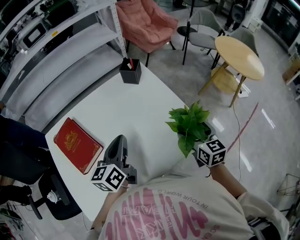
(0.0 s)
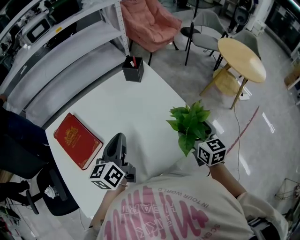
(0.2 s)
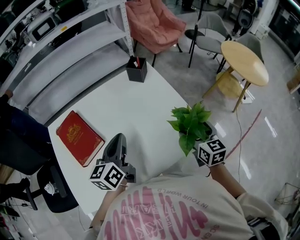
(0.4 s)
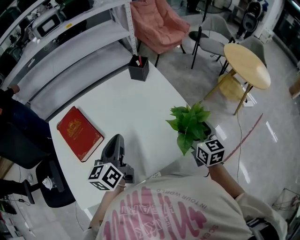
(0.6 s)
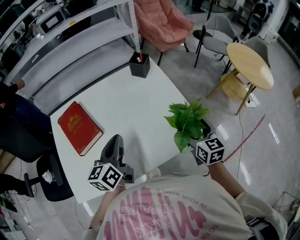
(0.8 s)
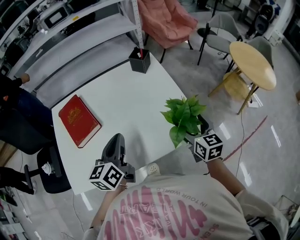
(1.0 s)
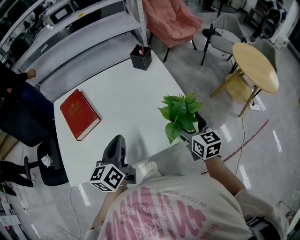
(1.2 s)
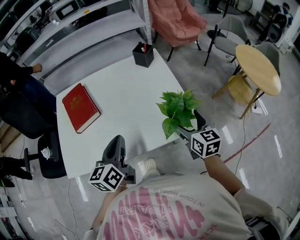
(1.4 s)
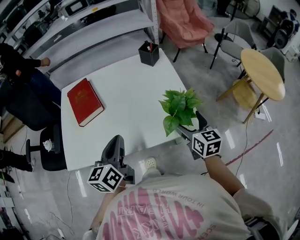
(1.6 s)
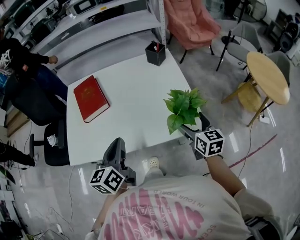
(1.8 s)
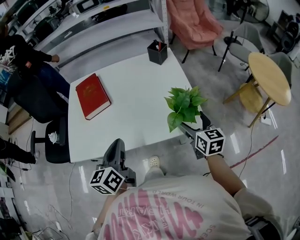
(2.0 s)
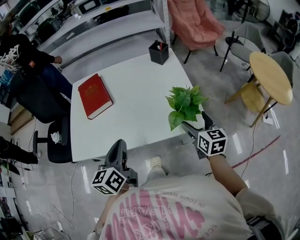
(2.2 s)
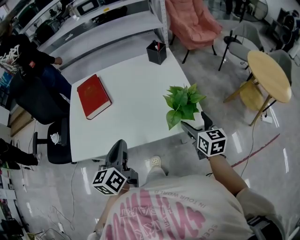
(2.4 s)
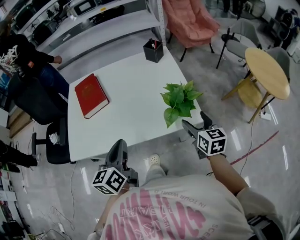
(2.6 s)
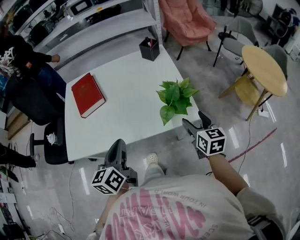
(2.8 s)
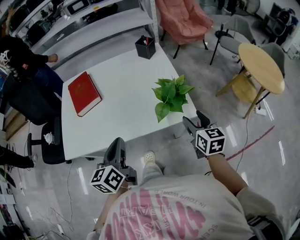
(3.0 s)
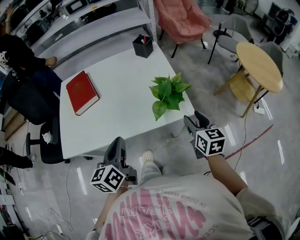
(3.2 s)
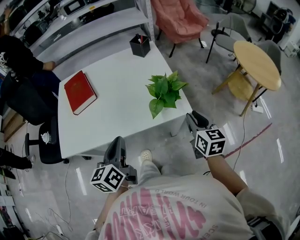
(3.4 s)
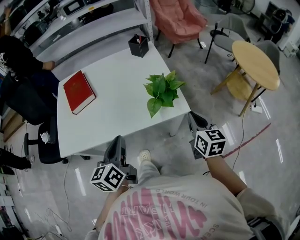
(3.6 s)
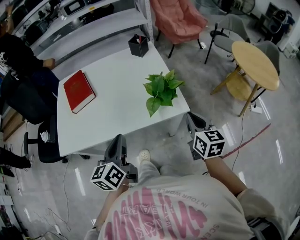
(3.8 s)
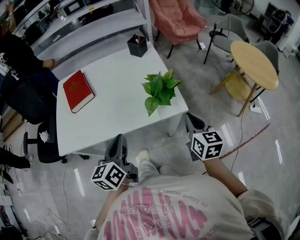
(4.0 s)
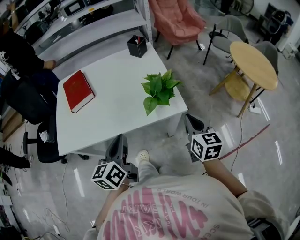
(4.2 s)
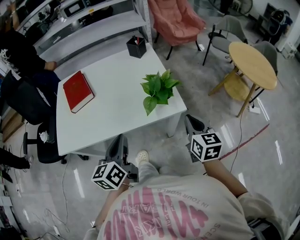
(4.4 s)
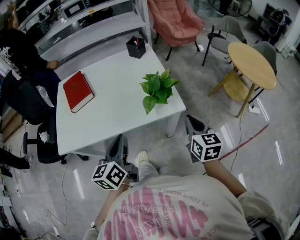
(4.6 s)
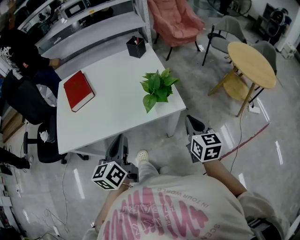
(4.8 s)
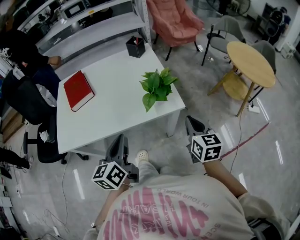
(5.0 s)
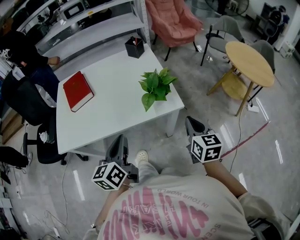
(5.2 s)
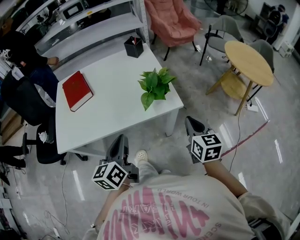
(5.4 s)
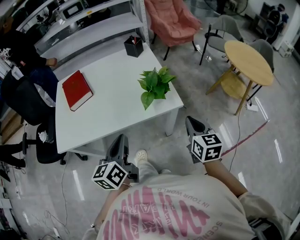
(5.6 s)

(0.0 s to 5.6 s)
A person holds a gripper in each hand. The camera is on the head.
0.0 s - 1.4 s: The left gripper goes some 15 cm backward.
1.4 s - 2.8 s: The right gripper is displaced backward by some 5 cm, while the left gripper heads backward, covering roughly 10 cm.
2.8 s - 4.2 s: The left gripper is displaced to the right by some 5 cm. The right gripper is displaced backward by some 5 cm, and closes.
4.2 s - 5.6 s: The right gripper moves about 5 cm.

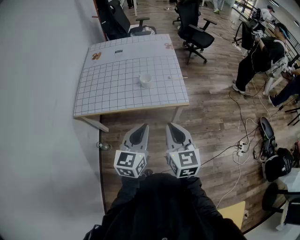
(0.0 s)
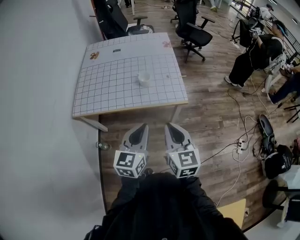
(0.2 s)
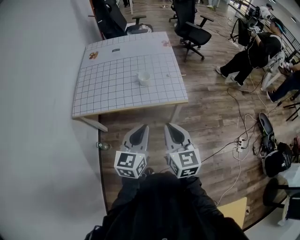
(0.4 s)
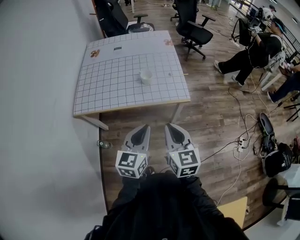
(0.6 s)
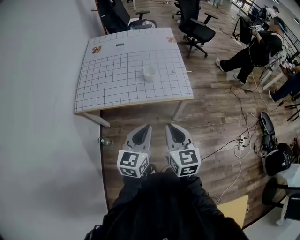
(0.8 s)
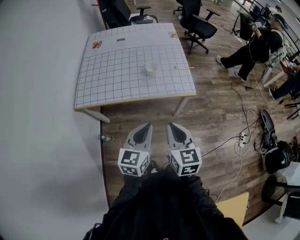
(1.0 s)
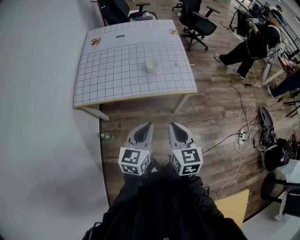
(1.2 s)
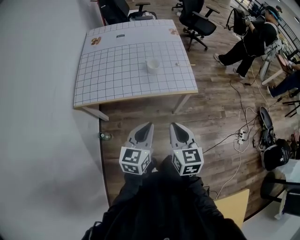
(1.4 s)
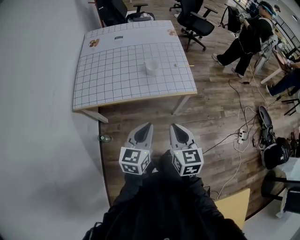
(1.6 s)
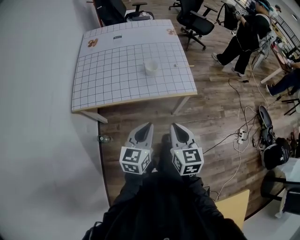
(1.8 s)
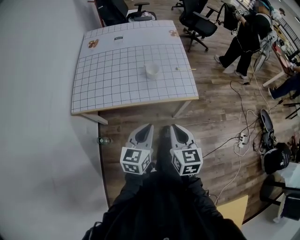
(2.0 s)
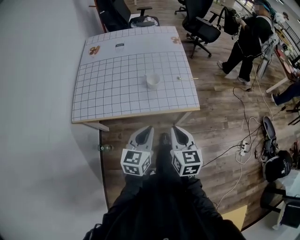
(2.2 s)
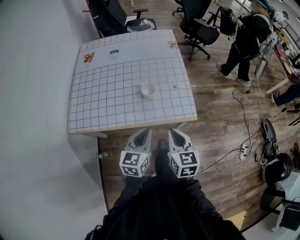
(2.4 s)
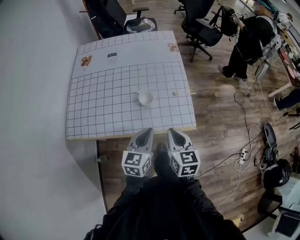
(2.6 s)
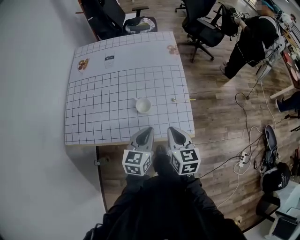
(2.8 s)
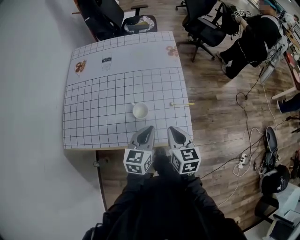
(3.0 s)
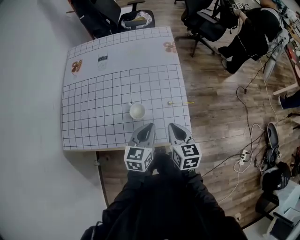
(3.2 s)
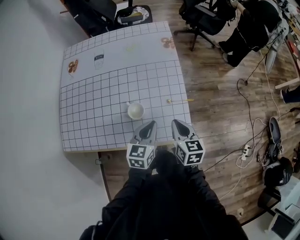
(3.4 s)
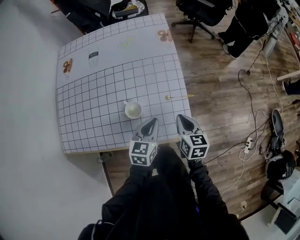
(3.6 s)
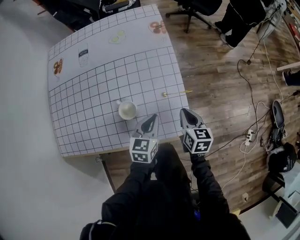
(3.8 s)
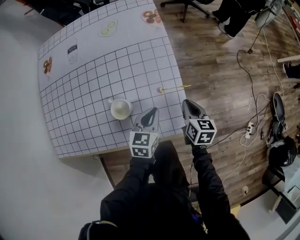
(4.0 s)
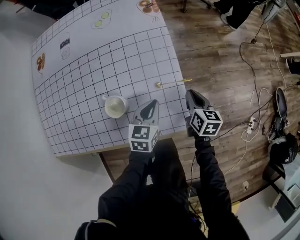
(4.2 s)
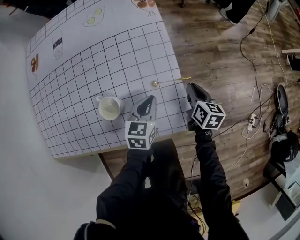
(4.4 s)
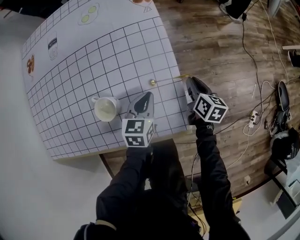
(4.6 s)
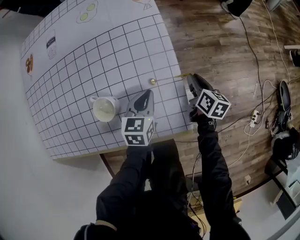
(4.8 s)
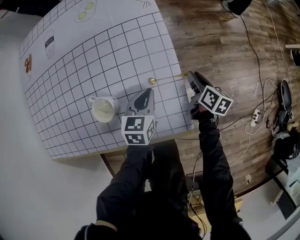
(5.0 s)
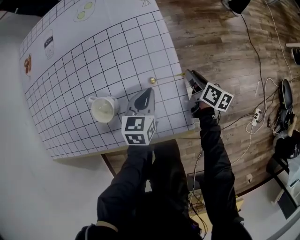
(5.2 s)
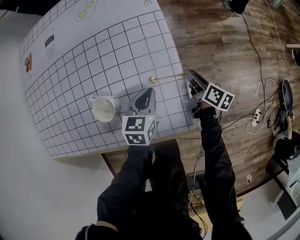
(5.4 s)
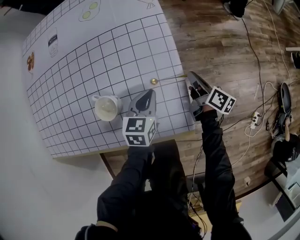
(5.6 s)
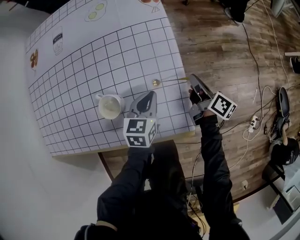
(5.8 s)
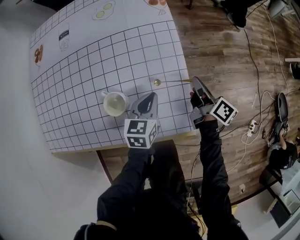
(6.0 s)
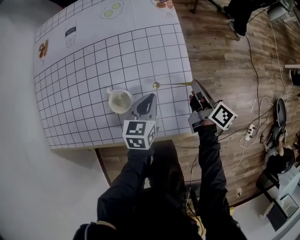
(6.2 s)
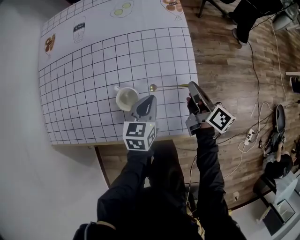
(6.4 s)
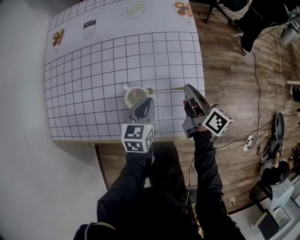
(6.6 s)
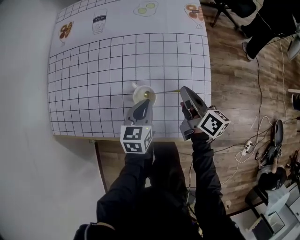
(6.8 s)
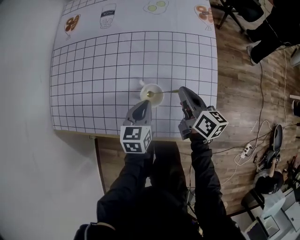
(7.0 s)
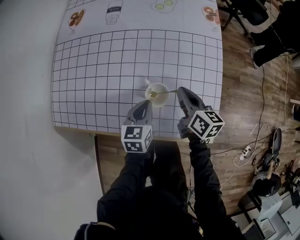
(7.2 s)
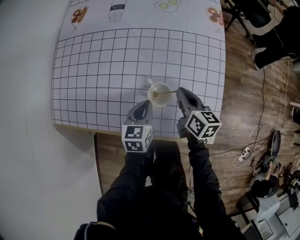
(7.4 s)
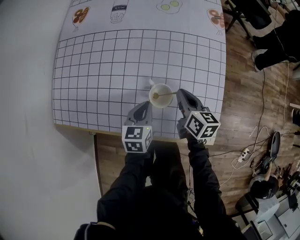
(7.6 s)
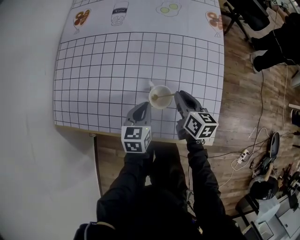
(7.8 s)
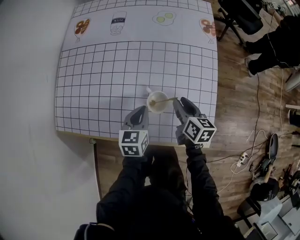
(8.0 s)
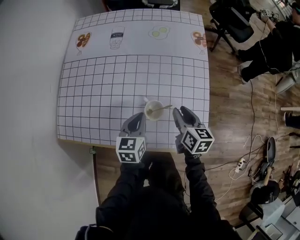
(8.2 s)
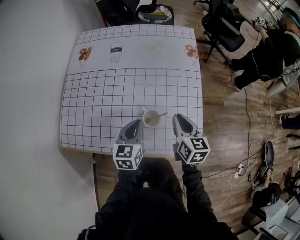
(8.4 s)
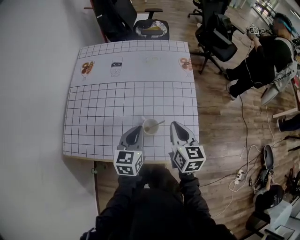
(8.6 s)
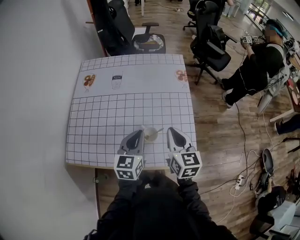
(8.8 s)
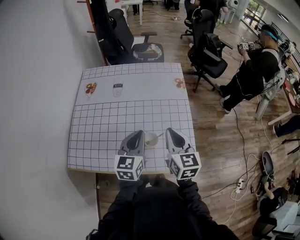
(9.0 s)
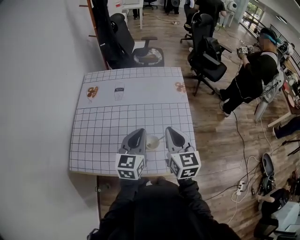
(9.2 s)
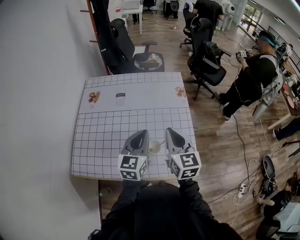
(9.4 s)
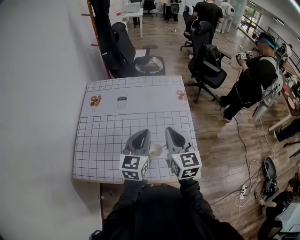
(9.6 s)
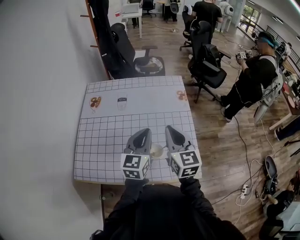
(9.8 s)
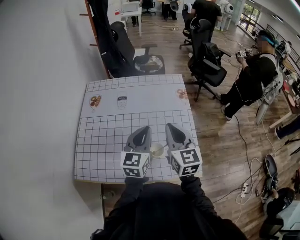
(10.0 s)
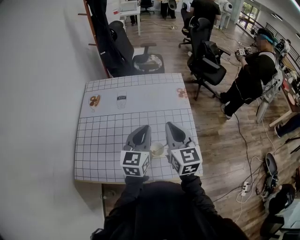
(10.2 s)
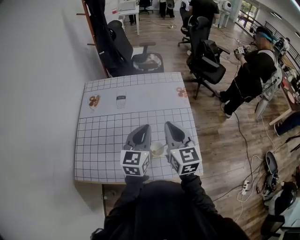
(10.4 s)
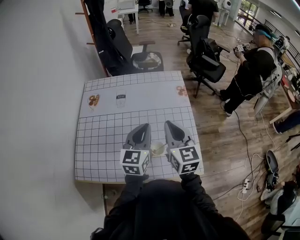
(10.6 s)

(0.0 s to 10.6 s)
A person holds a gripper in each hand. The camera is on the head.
0.0 s - 1.6 s: The right gripper is displaced downward and to the left by roughly 10 cm, while the left gripper shifts approximately 10 cm to the left and downward.
1.6 s - 3.0 s: The two grippers go about 40 cm forward.
3.0 s - 4.6 s: The left gripper moves downward and forward, some 30 cm. The right gripper travels downward, forward and to the right by about 40 cm, and swivels about 30 degrees.
4.6 s - 6.0 s: The right gripper is displaced upward by approximately 5 cm, and rotates some 30 degrees.
6.0 s - 7.6 s: Both grippers move to the left, approximately 25 cm. The right gripper changes its angle by some 40 degrees.
7.6 s - 9.0 s: Both grippers move upward, some 30 cm. The right gripper rotates some 30 degrees, and opens, then closes again; the left gripper turns by approximately 30 degrees.
9.0 s - 10.6 s: The left gripper shifts about 10 cm forward and upward; the right gripper moves upward and forward, approximately 10 cm.

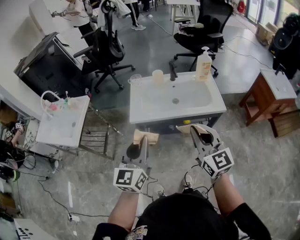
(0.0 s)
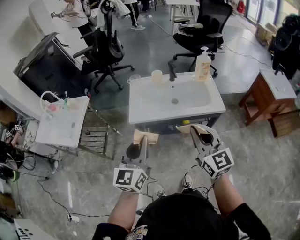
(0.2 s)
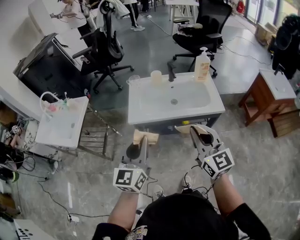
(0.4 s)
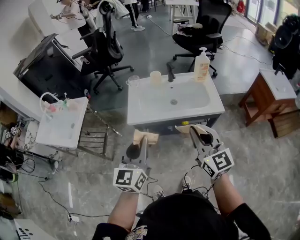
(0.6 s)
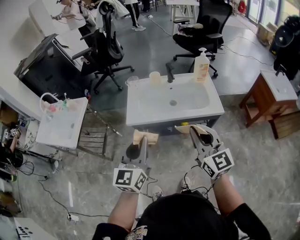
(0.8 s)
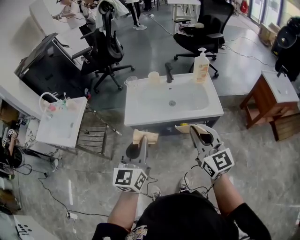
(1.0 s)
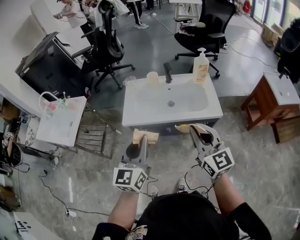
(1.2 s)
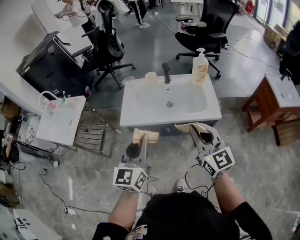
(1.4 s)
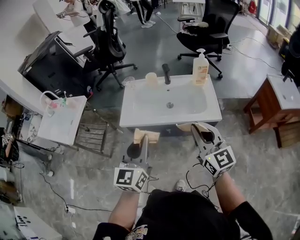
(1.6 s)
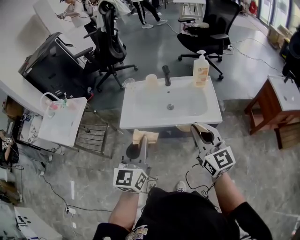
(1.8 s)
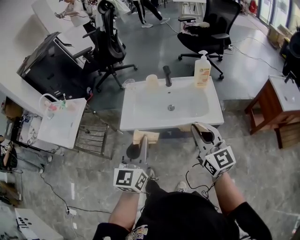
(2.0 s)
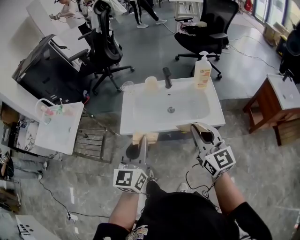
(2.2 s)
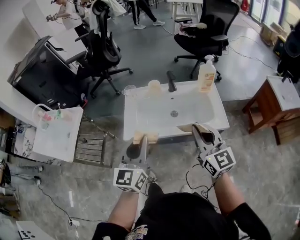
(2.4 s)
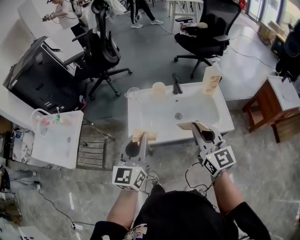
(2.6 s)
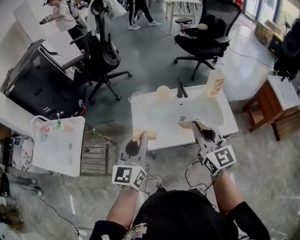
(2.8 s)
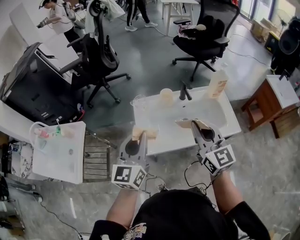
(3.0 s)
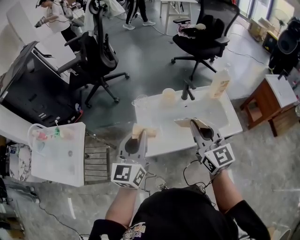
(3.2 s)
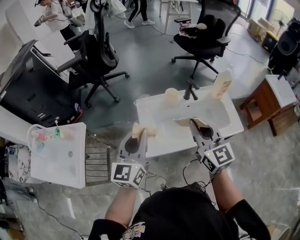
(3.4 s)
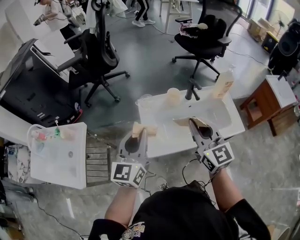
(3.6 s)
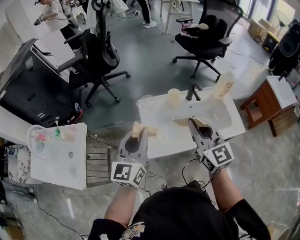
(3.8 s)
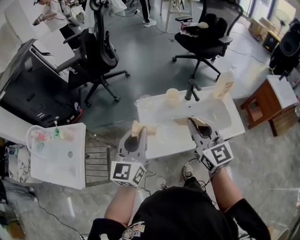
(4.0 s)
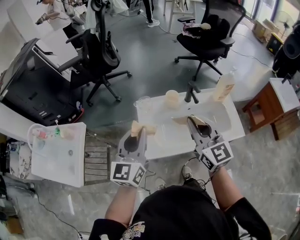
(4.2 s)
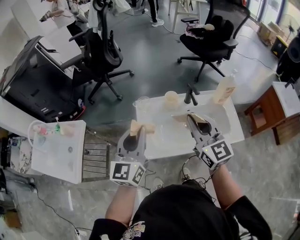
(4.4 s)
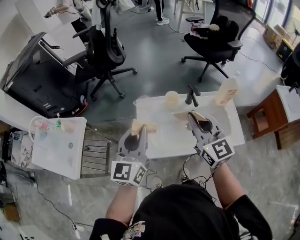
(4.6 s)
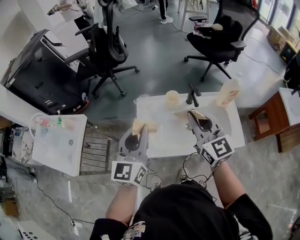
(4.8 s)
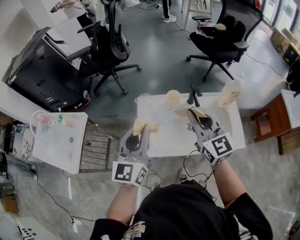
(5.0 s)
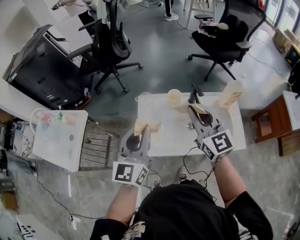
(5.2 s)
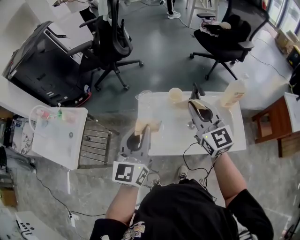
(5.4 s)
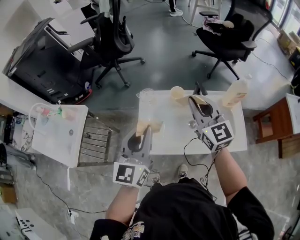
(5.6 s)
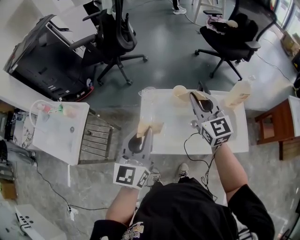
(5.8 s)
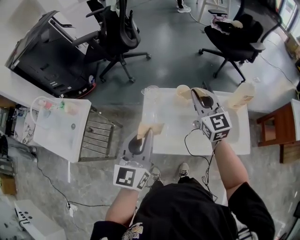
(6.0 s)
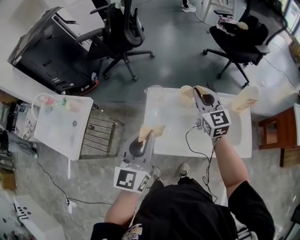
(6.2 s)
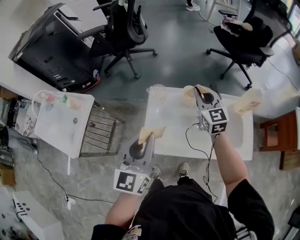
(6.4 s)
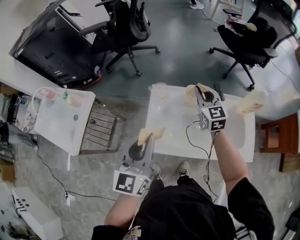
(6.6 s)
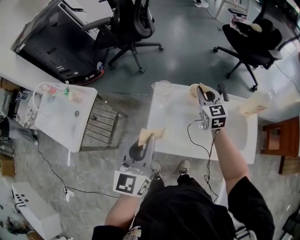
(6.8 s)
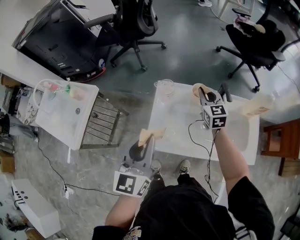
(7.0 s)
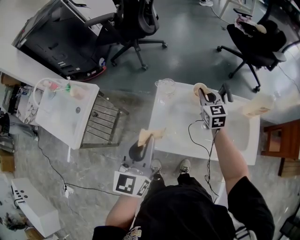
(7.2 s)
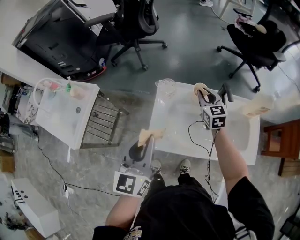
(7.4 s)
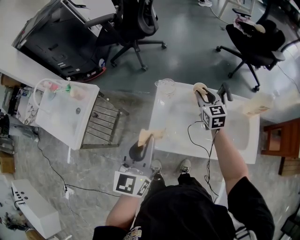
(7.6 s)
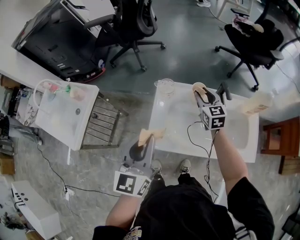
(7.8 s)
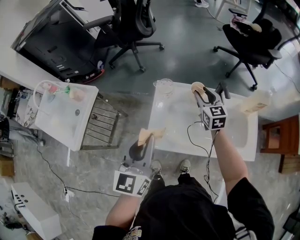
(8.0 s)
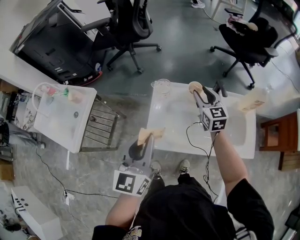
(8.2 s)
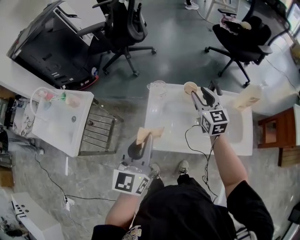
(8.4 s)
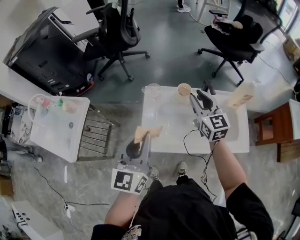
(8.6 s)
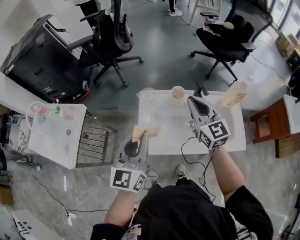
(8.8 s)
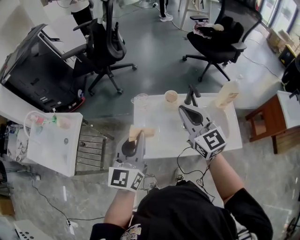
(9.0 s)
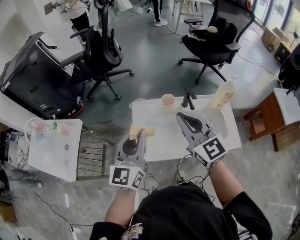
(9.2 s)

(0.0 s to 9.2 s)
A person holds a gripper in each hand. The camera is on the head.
0.0 s - 1.6 s: The right gripper heads to the right and forward, covering approximately 15 cm; the left gripper is displaced to the right by about 10 cm.
1.6 s - 3.0 s: Both grippers travel together forward and to the left, about 25 cm.
3.0 s - 4.6 s: The right gripper shifts approximately 10 cm forward. Meanwhile the left gripper travels forward by roughly 5 cm.
4.6 s - 6.2 s: The right gripper heads forward and downward, covering some 20 cm.
6.2 s - 7.6 s: The right gripper heads downward, covering approximately 15 cm, and opens its fingers.
7.6 s - 9.2 s: The right gripper moves upward and backward, about 30 cm, changes its angle by about 20 degrees, and closes its fingers. Meanwhile the left gripper travels upward by roughly 5 cm.
